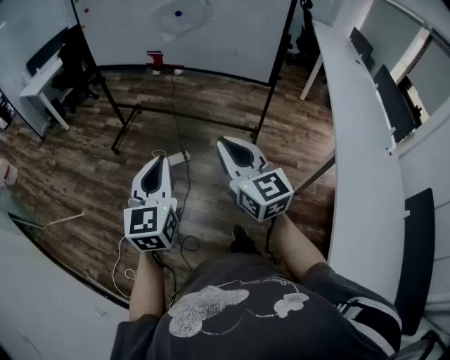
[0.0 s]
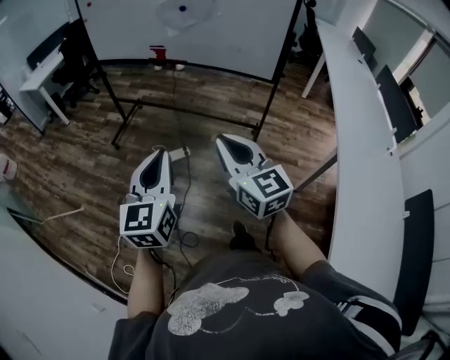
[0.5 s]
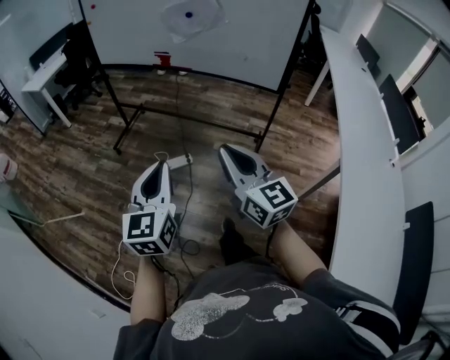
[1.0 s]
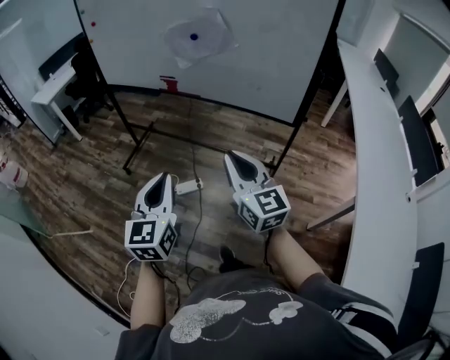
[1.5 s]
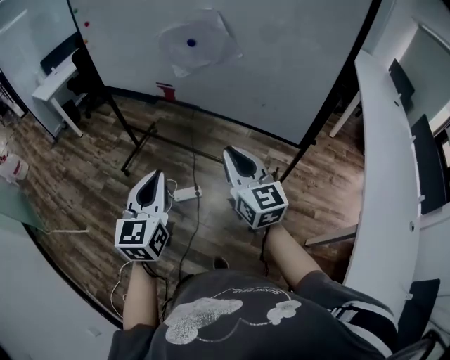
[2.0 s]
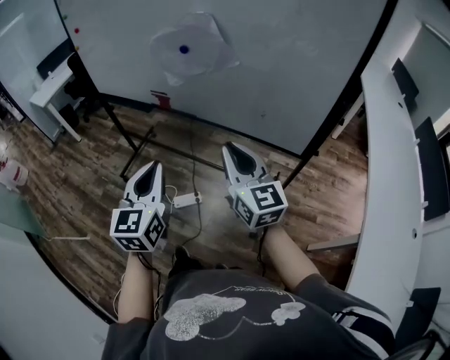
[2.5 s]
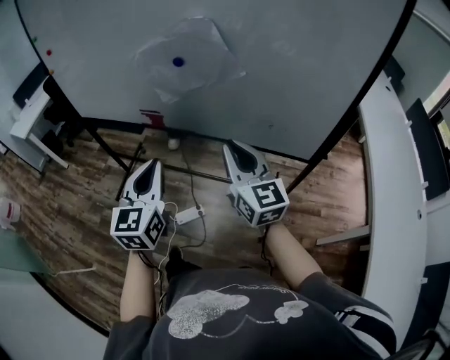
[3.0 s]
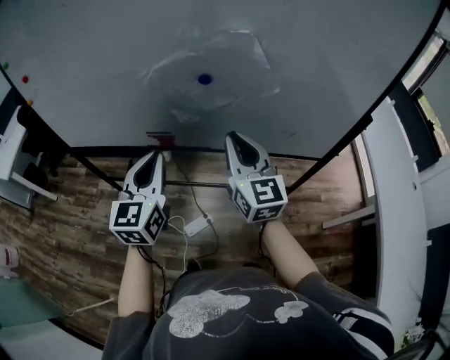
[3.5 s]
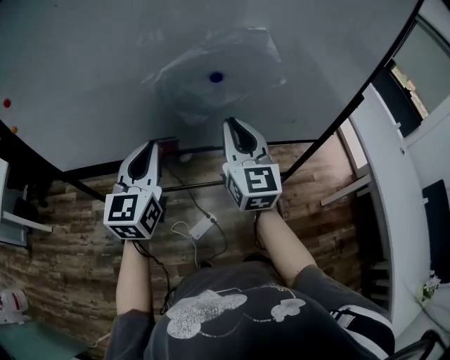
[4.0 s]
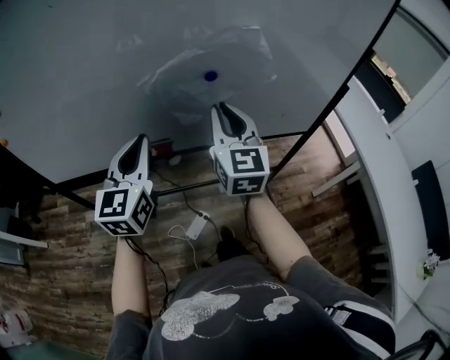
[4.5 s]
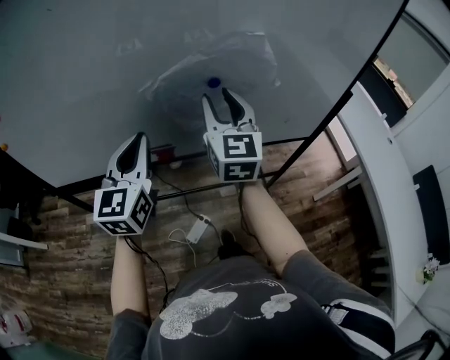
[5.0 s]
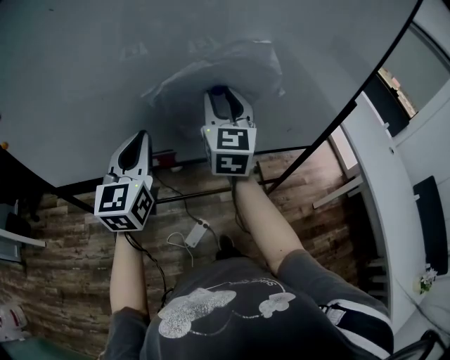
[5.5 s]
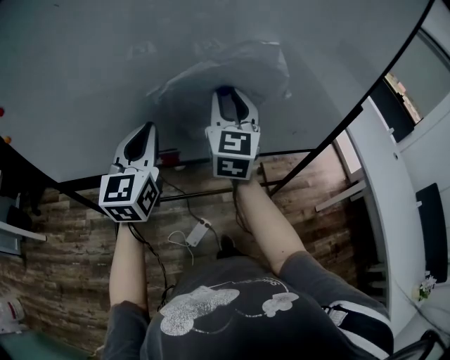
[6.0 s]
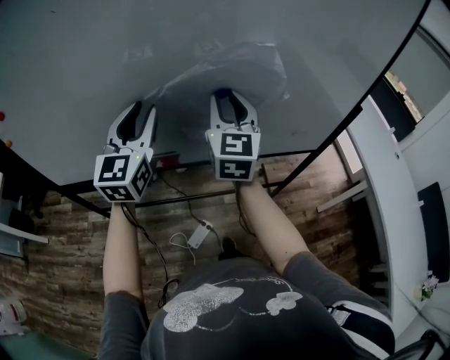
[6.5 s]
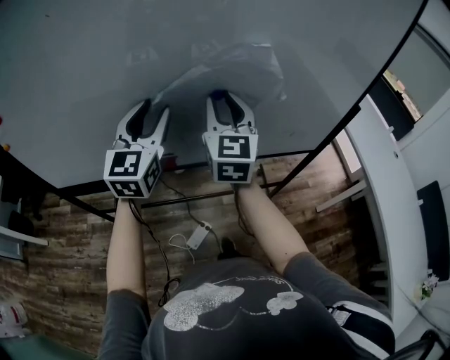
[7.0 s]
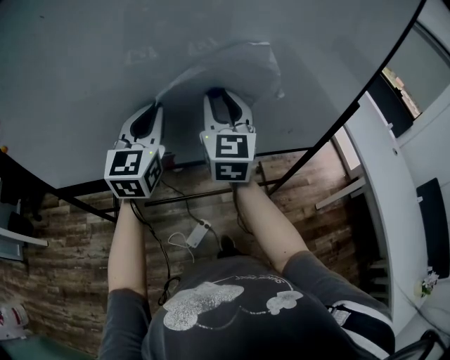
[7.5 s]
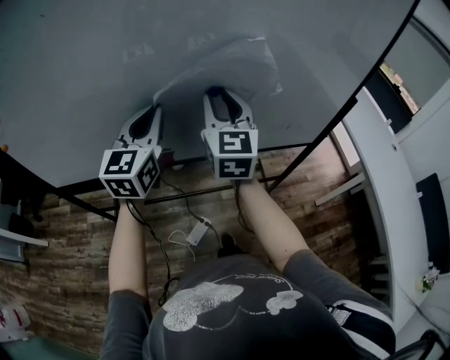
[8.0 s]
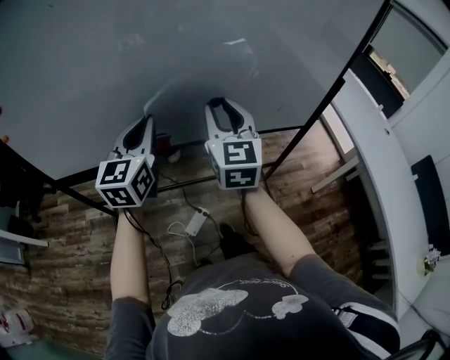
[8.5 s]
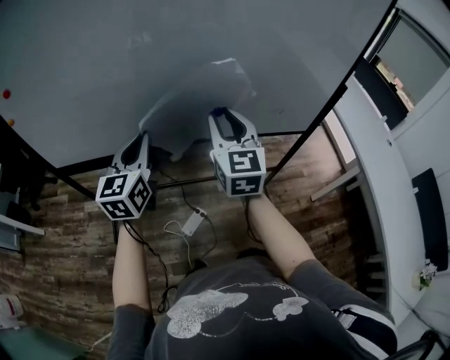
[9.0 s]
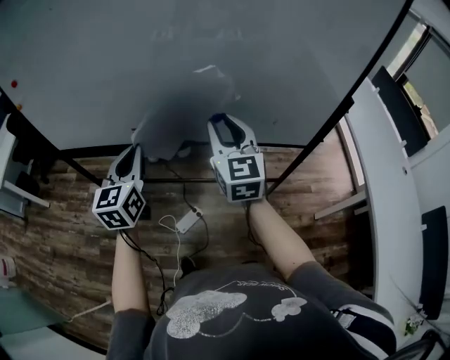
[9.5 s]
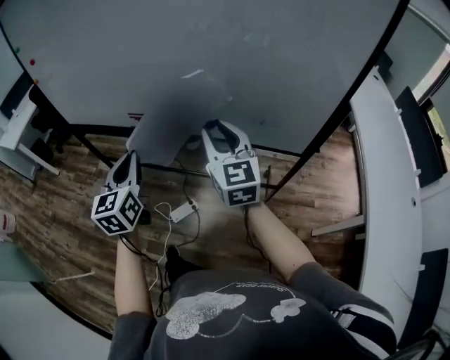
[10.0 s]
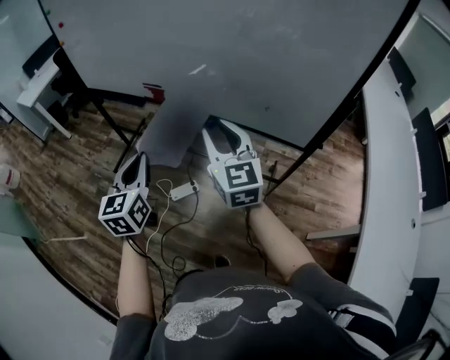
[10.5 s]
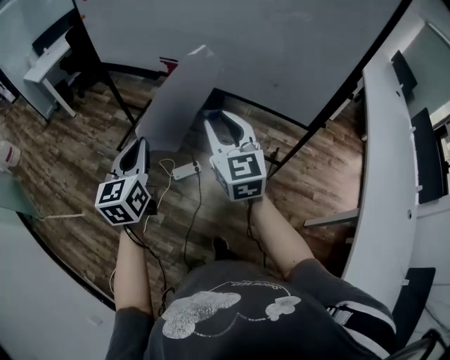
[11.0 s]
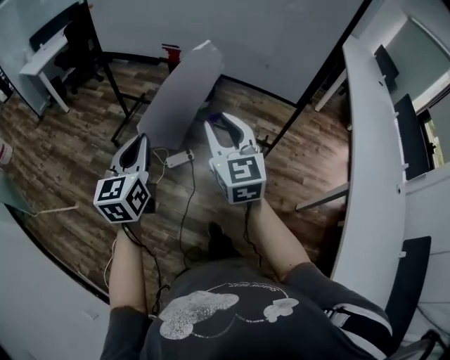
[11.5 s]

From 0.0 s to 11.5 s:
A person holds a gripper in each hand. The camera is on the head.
From 0.0 s to 2.0 s: The grippers both shift forward by approximately 30 cm.
From 2.0 s to 4.0 s: The left gripper changes place by about 40 cm, and changes its angle by roughly 30 degrees. The right gripper shifts by some 30 cm, and turns by about 40 degrees.
From 4.0 s to 6.0 s: The two grippers go some 10 cm forward. The right gripper opens up.
From 6.0 s to 7.5 s: The left gripper shifts by approximately 5 cm, and opens, then closes again.
From 7.5 s to 9.5 s: The left gripper is displaced backward and downward by roughly 15 cm, and swivels approximately 20 degrees. Meanwhile the right gripper shifts approximately 15 cm to the right, backward and downward.
From 9.5 s to 11.5 s: The right gripper ends up about 35 cm from where it was, and rotates about 20 degrees. The left gripper moves roughly 40 cm, and swivels about 20 degrees.

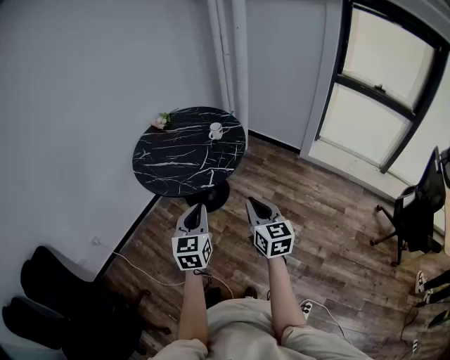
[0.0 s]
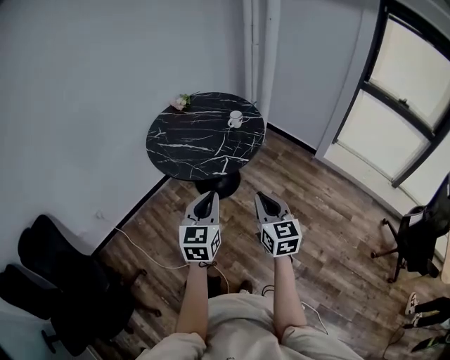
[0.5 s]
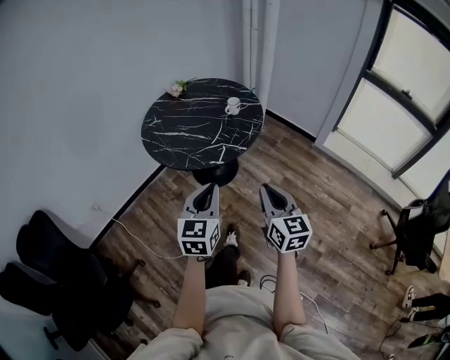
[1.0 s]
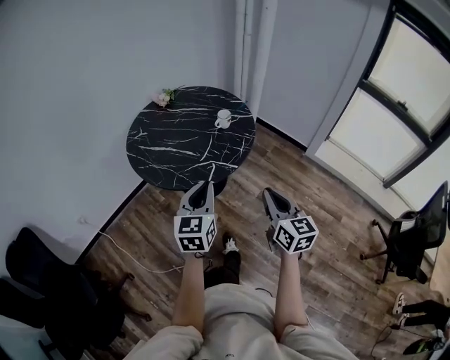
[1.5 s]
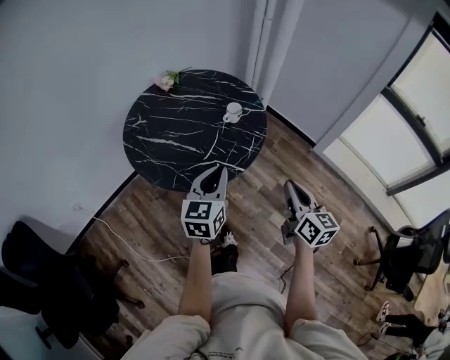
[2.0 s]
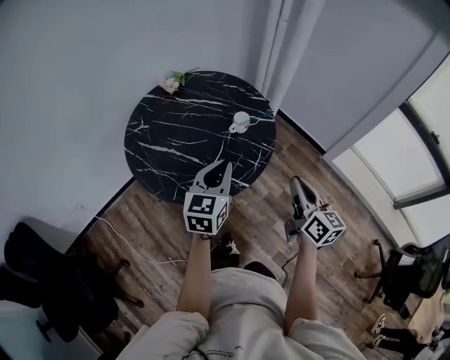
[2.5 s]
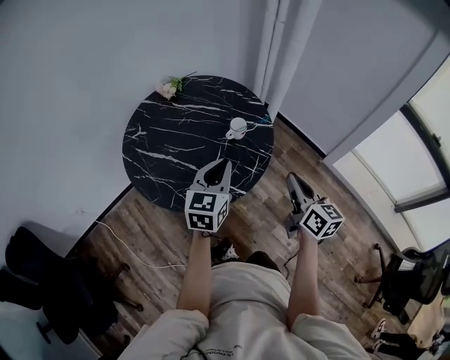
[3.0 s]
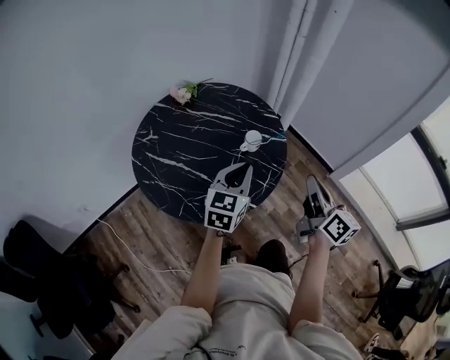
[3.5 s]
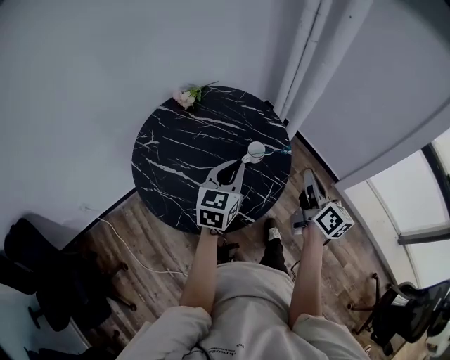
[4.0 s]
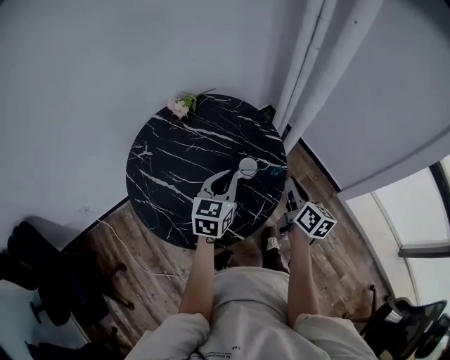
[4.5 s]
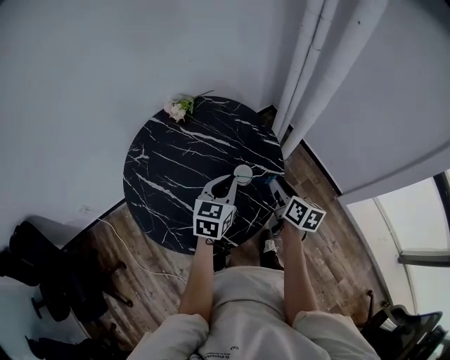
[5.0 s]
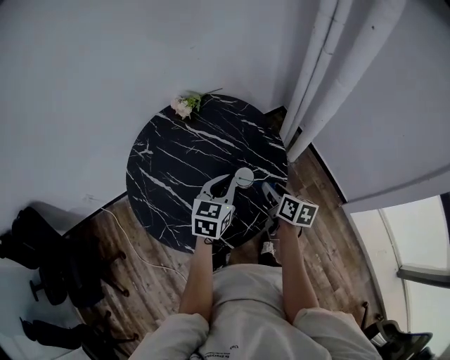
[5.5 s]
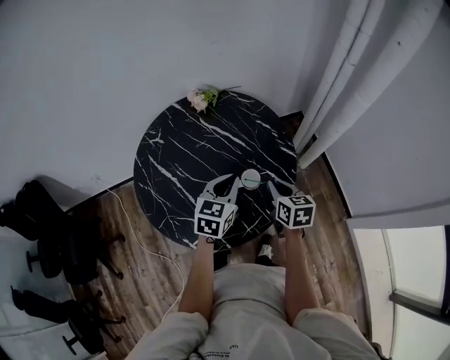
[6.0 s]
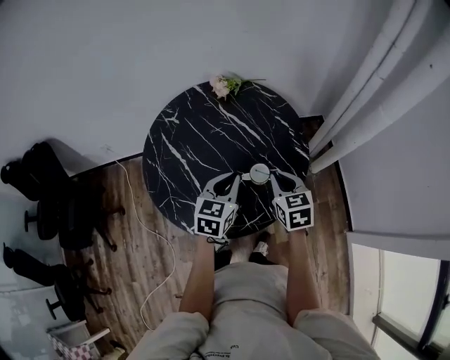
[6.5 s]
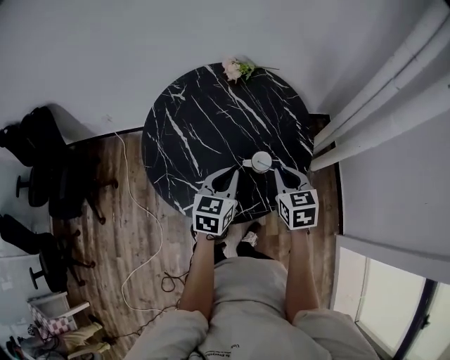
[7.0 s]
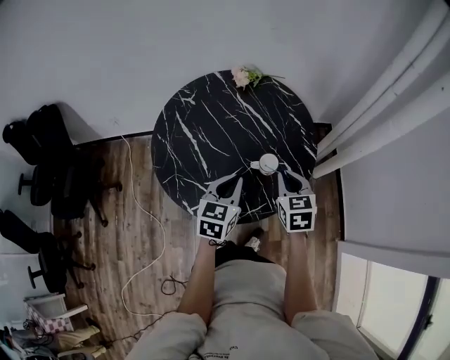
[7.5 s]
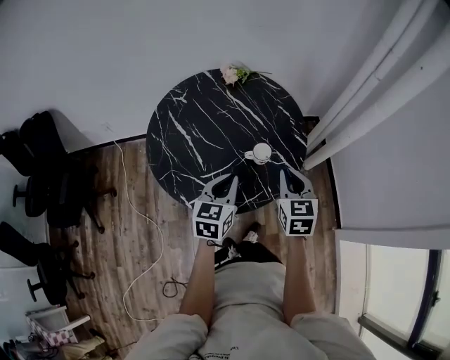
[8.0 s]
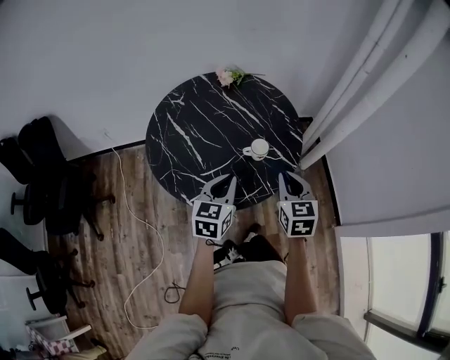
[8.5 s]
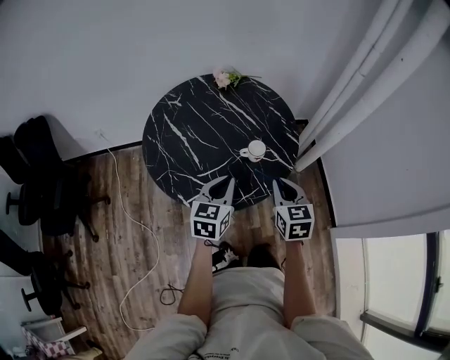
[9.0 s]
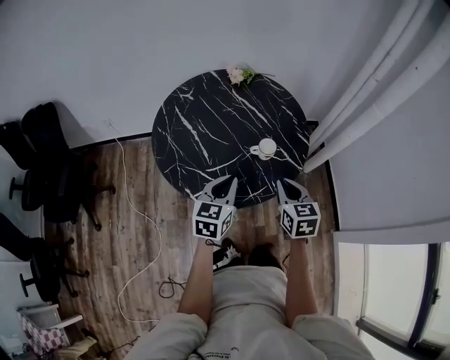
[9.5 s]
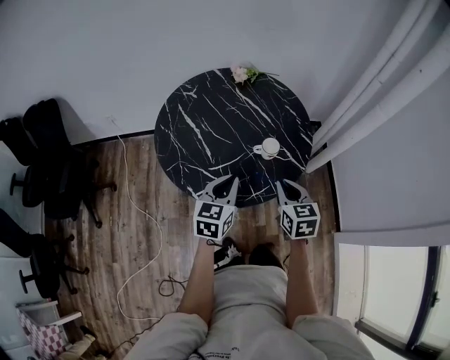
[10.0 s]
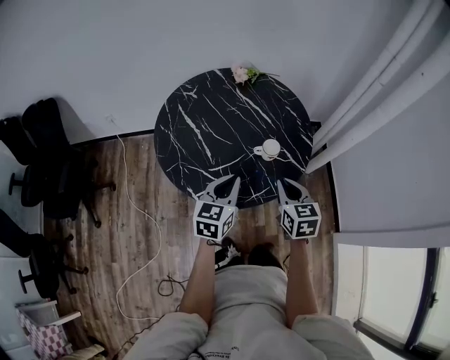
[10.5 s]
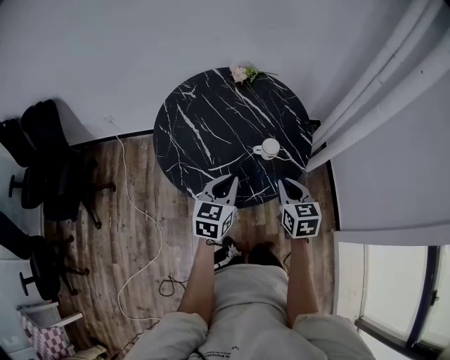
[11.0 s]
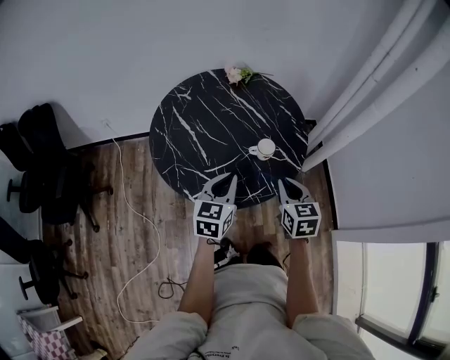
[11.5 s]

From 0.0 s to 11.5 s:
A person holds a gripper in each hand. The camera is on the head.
From 0.0 s to 2.0 s: The grippers both shift forward by roughly 25 cm.
From 2.0 s to 4.0 s: Both grippers travel together forward, roughly 30 cm.
From 4.0 s to 6.0 s: The right gripper travels forward and downward by about 20 cm, points its fingers roughly 30 degrees further downward, and opens, then closes once more. The left gripper moves forward, to the right and downward, roughly 15 cm, and swivels some 20 degrees.
From 6.0 s to 7.5 s: The left gripper goes about 10 cm backward and to the left. Meanwhile the right gripper ends up roughly 5 cm from where it was, and changes its angle by approximately 30 degrees.
From 7.5 s to 9.5 s: The two grippers go approximately 10 cm backward.
From 9.5 s to 11.5 s: The grippers make only small movements.

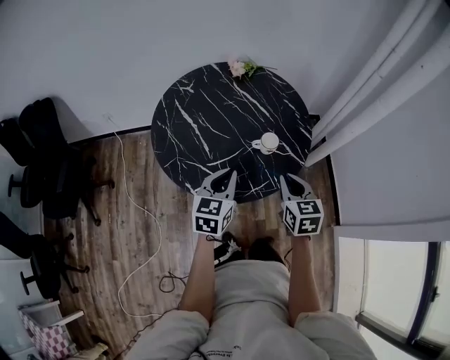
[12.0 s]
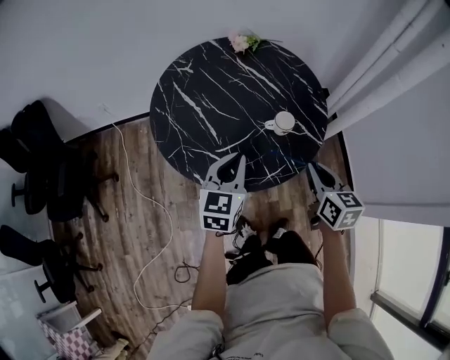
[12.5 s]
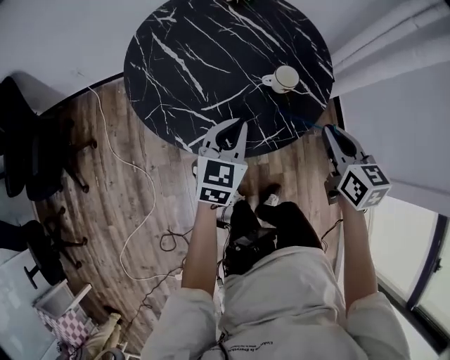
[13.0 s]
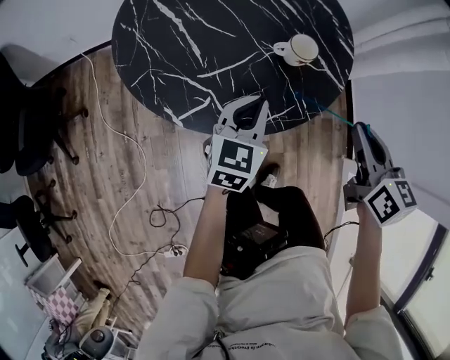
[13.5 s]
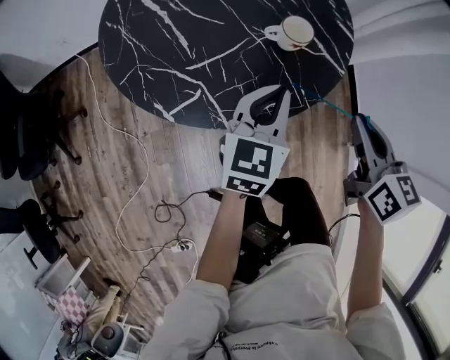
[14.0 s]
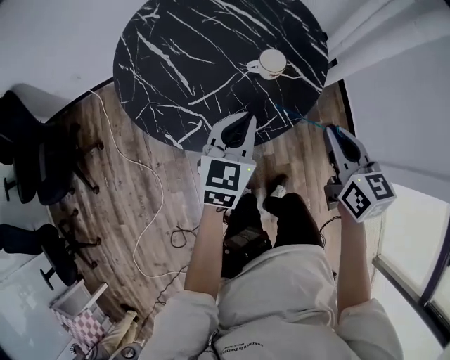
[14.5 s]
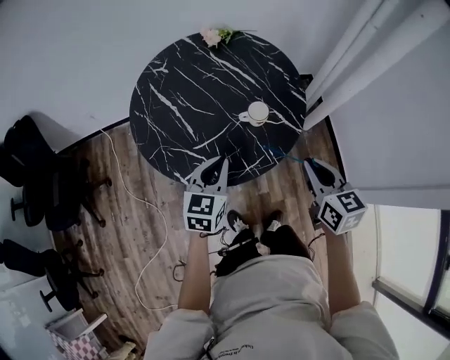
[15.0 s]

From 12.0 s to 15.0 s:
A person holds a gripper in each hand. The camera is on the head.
From 12.0 s to 13.5 s: The right gripper is displaced to the right and downward by approximately 10 cm, while the left gripper shifts about 15 cm downward.
From 13.5 s to 15.0 s: The right gripper heads upward, covering roughly 5 cm; the left gripper moves upward, some 10 cm.
